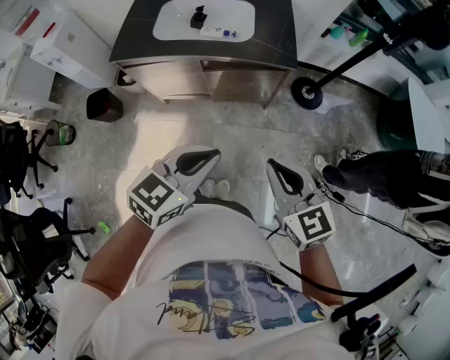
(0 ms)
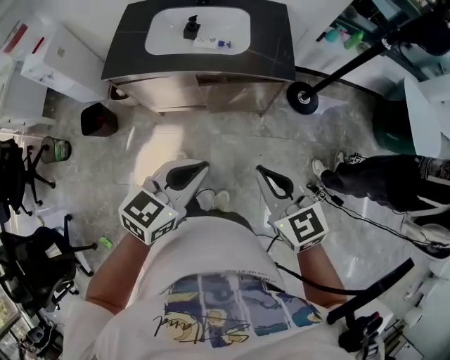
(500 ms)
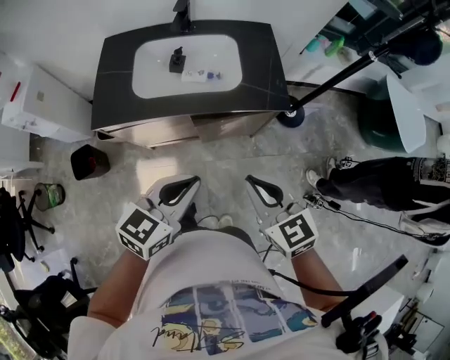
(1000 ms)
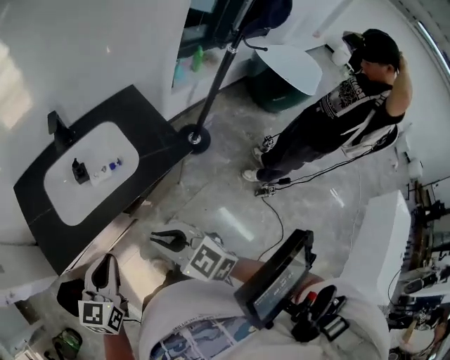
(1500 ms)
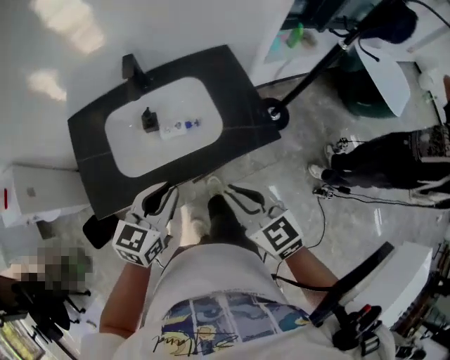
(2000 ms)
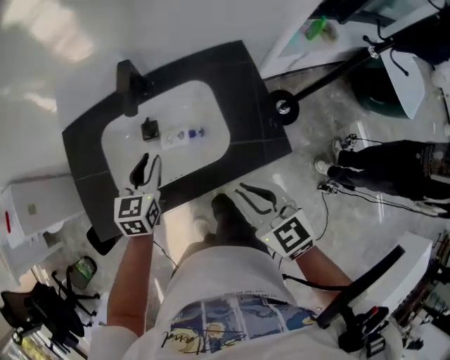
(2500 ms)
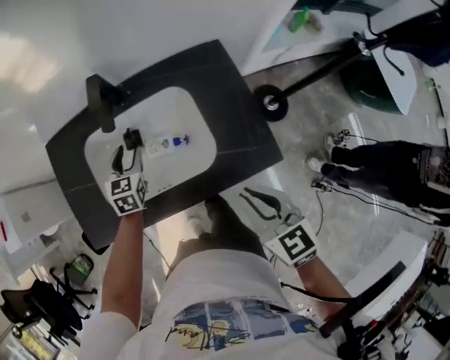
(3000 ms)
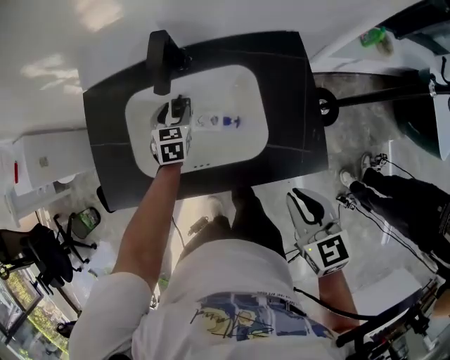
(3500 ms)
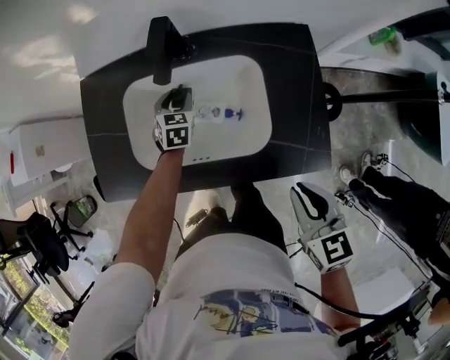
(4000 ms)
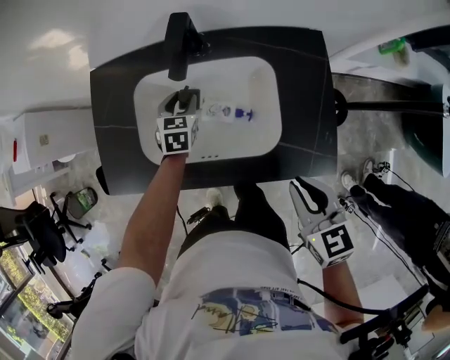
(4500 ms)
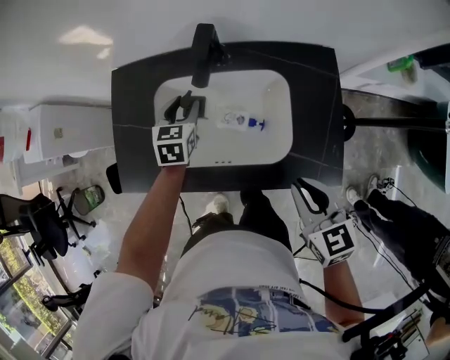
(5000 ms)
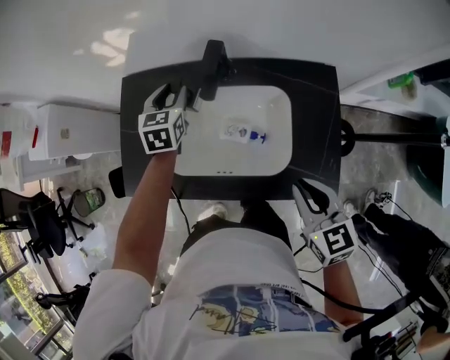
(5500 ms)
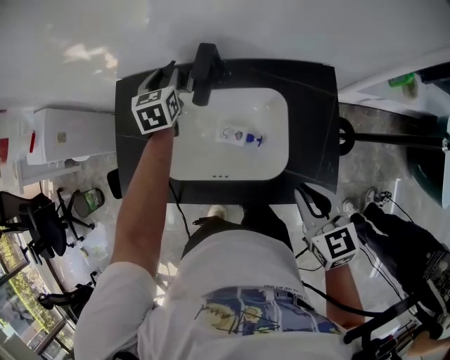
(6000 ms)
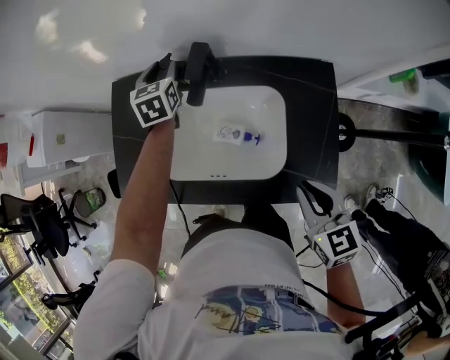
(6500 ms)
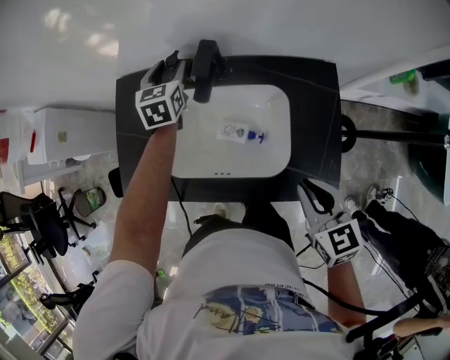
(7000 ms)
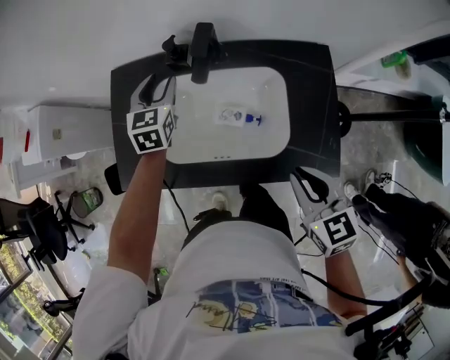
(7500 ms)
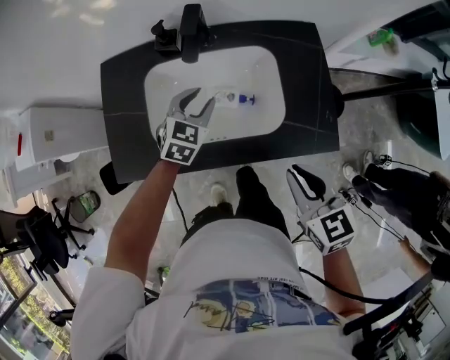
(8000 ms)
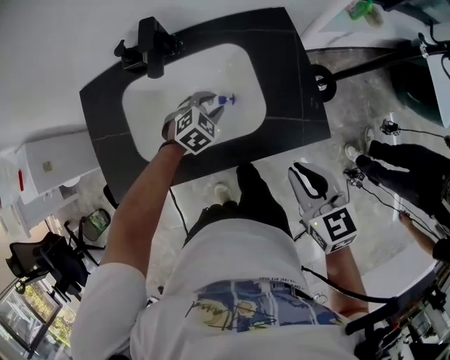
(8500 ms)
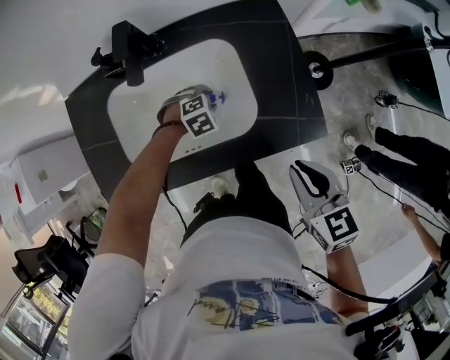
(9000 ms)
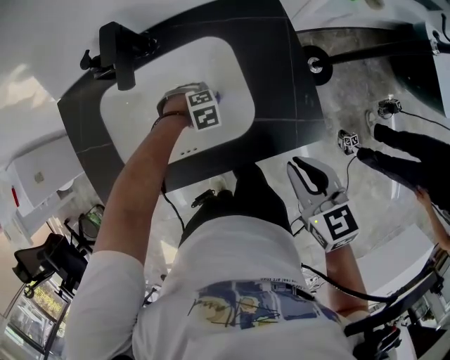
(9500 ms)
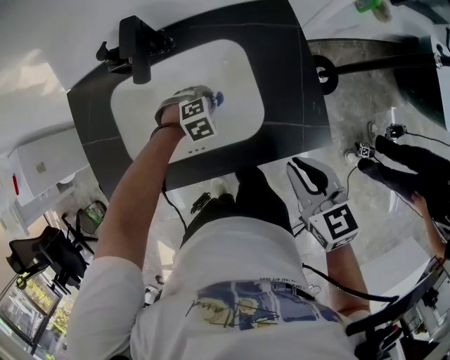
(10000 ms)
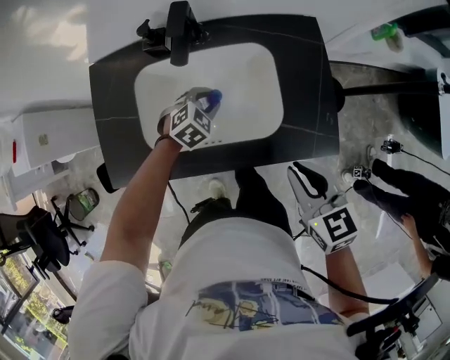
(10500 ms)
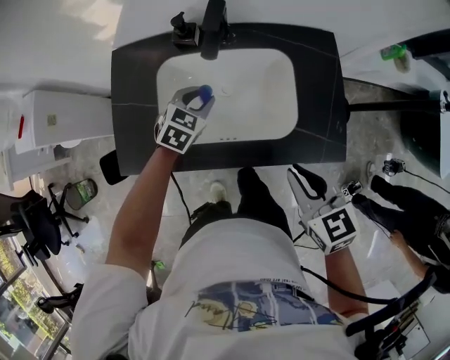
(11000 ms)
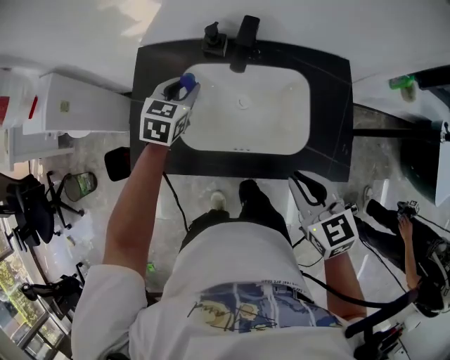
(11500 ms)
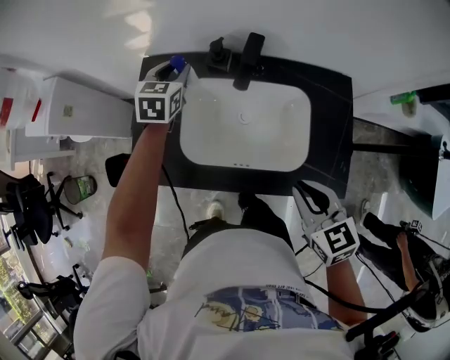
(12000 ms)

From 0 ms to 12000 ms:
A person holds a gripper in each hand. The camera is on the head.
From 0 ms to 2000 ms: The two grippers go some 35 cm forward and to the left.
From 2000 ms to 4000 ms: The right gripper goes some 15 cm to the right, forward and downward, while the left gripper moves forward and downward, approximately 40 cm, swivels about 40 degrees, and opens its fingers.
From 4000 ms to 6000 ms: The left gripper goes some 20 cm upward and forward; the right gripper moves forward, roughly 5 cm.
From 6000 ms to 8000 ms: The left gripper heads backward, covering about 20 cm, and changes its angle by some 40 degrees. The right gripper goes some 10 cm backward and to the left.
From 8000 ms to 10000 ms: The left gripper moves downward, approximately 15 cm, and angles its fingers downward, by approximately 40 degrees; the right gripper changes place by about 10 cm.
From 10000 ms to 12000 ms: The left gripper moves about 40 cm, and points its fingers approximately 40 degrees further upward; the right gripper moves about 10 cm.

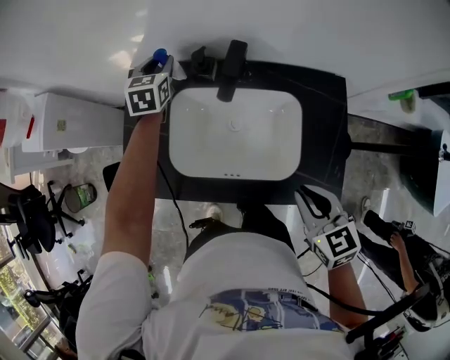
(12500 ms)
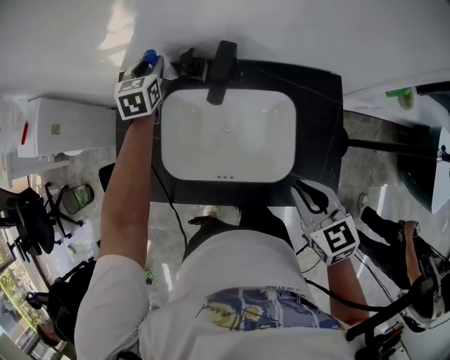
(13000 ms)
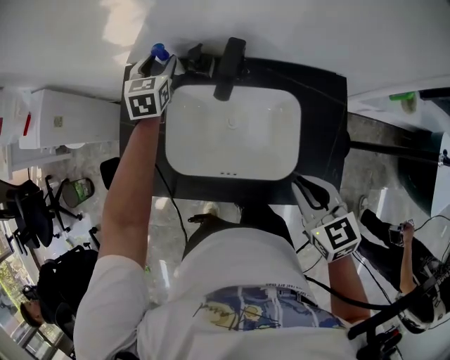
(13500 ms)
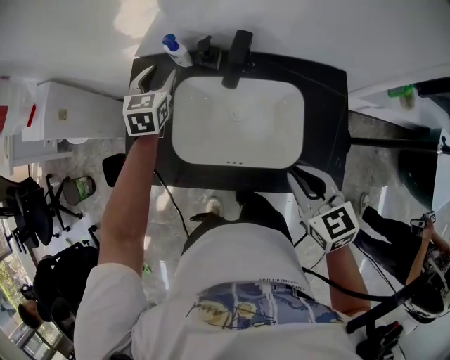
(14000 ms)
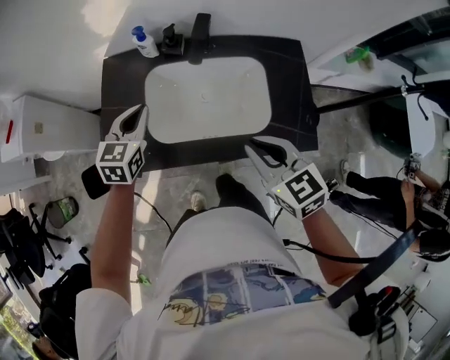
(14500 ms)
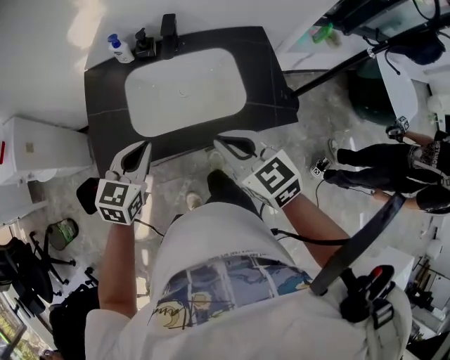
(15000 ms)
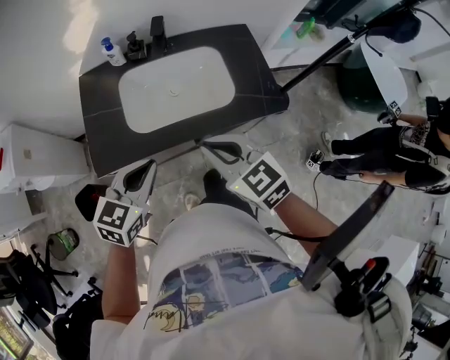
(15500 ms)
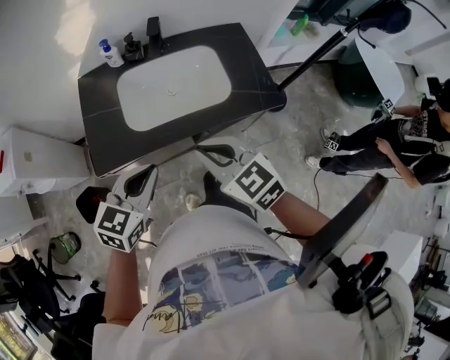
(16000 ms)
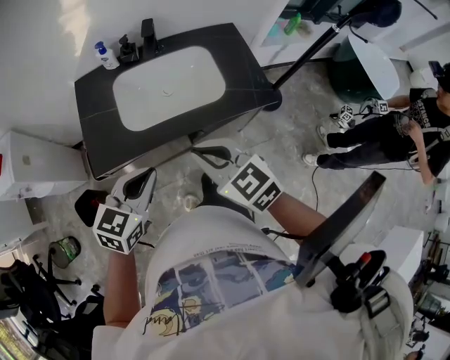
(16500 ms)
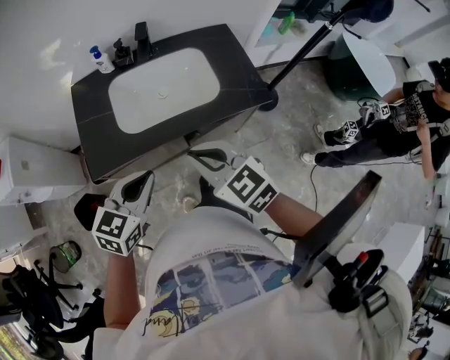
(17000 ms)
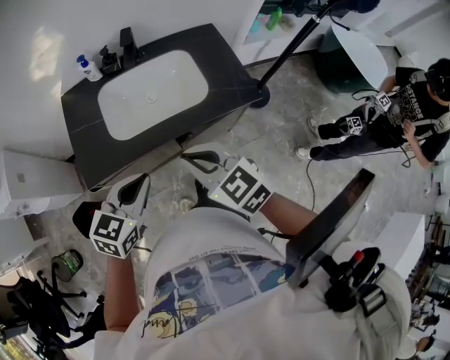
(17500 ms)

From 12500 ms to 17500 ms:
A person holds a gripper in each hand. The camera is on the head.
From 12500 ms to 15000 ms: The right gripper is displaced to the left and backward by approximately 15 cm. Meanwhile the left gripper shifts some 40 cm backward, changes its angle by some 30 degrees, and closes.
From 15000 ms to 17500 ms: The grippers both shift backward by approximately 10 cm.

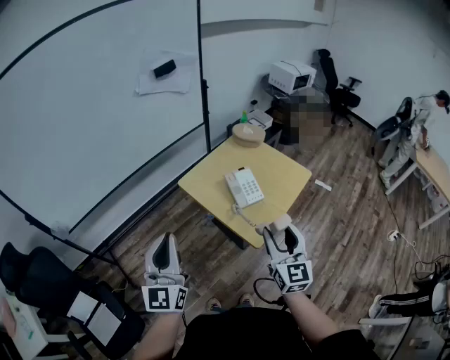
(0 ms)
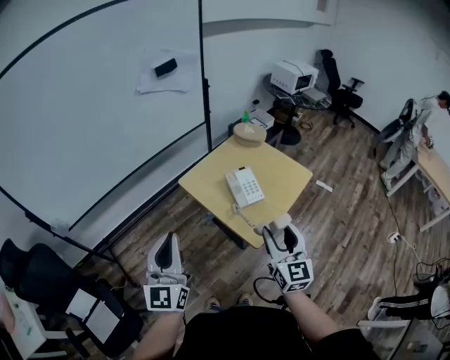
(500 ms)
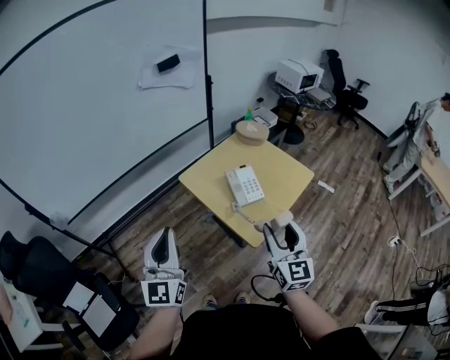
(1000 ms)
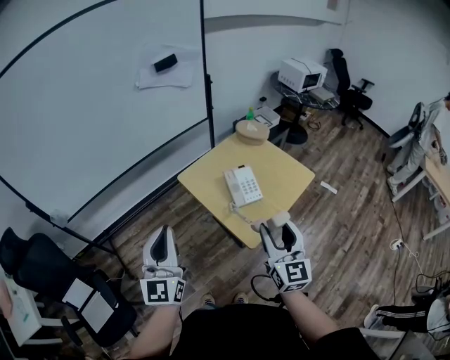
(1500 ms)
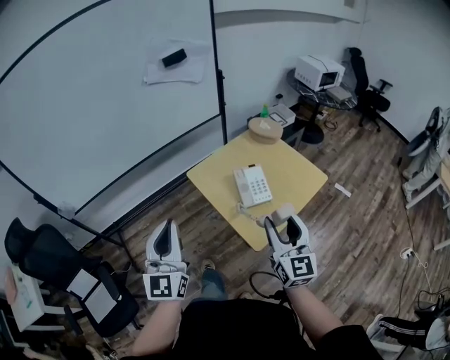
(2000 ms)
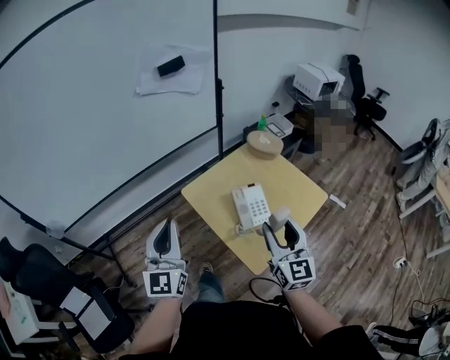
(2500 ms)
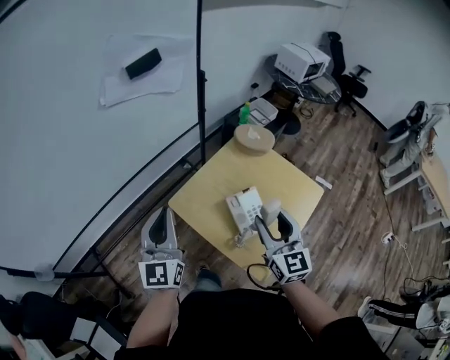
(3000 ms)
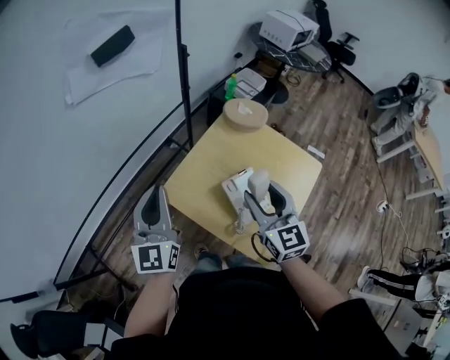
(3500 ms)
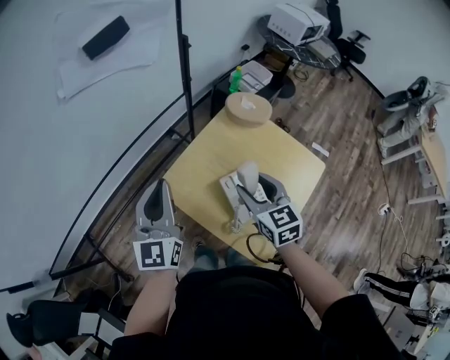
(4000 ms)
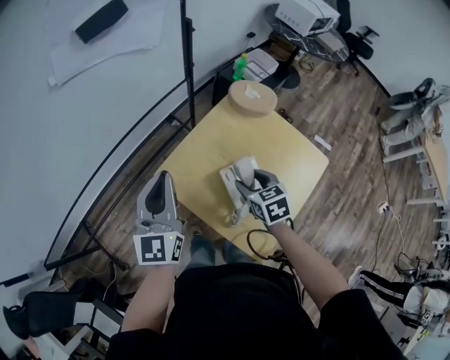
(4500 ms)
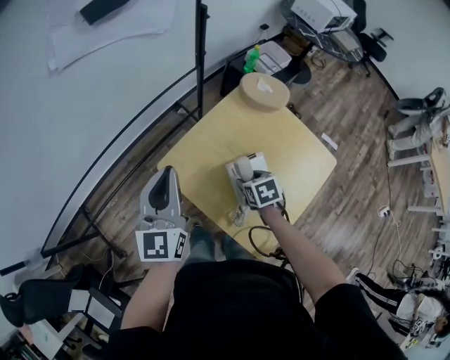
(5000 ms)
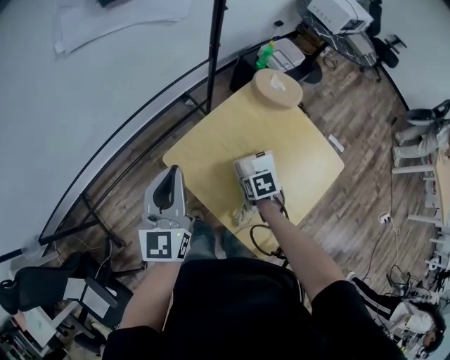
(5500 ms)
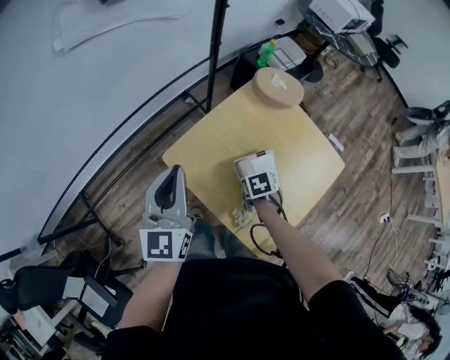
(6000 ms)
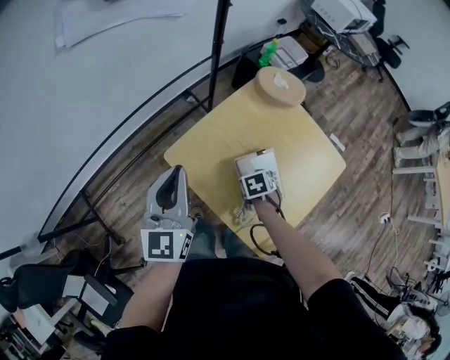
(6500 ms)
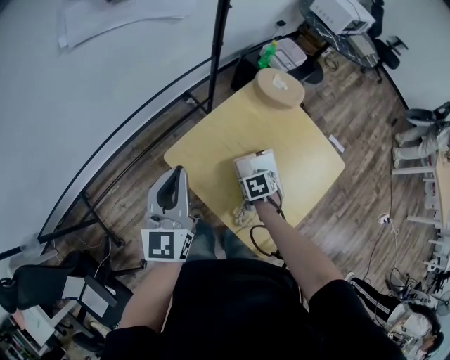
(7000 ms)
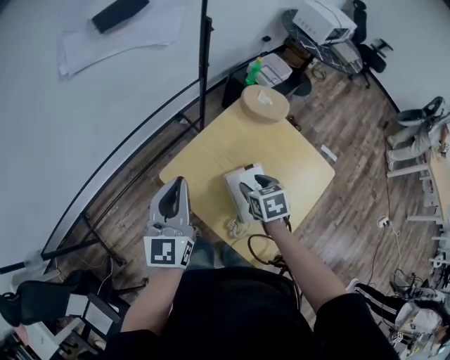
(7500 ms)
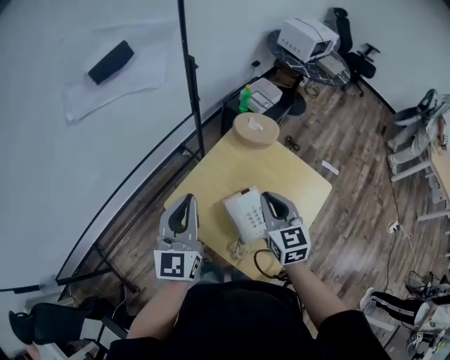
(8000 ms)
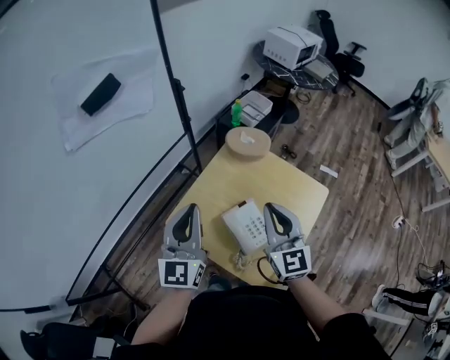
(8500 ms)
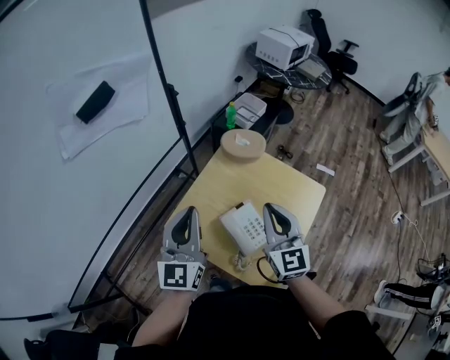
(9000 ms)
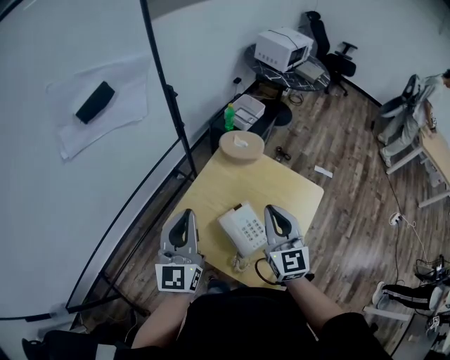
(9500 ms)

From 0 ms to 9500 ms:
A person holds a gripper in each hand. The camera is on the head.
From 0 ms to 2000 ms: The right gripper heads forward, covering about 5 cm; the left gripper travels to the right by approximately 5 cm.
From 2000 ms to 4000 ms: Both grippers move forward, about 35 cm. The right gripper turns by roughly 30 degrees.
From 4000 ms to 5500 ms: The left gripper shifts about 5 cm downward. Meanwhile the right gripper goes about 25 cm downward, and tilts its fingers roughly 40 degrees downward.
From 5500 ms to 7500 ms: The right gripper moves upward, roughly 10 cm.
From 7500 ms to 9500 ms: The right gripper shifts some 20 cm upward and to the right, tips its fingers upward by roughly 50 degrees, and closes up. The left gripper is displaced upward and to the right by about 10 cm.
